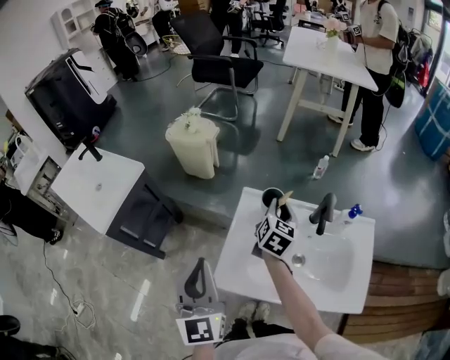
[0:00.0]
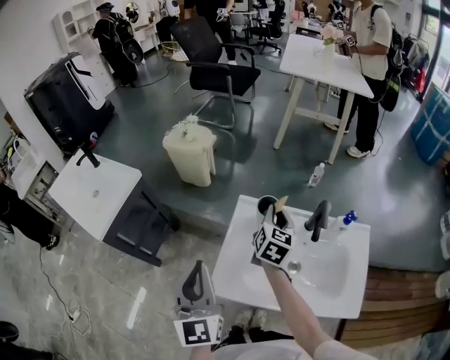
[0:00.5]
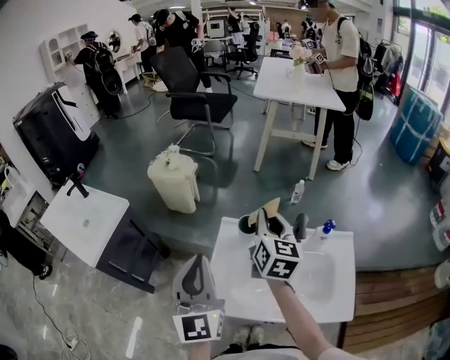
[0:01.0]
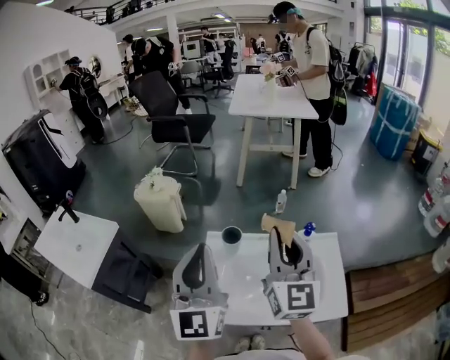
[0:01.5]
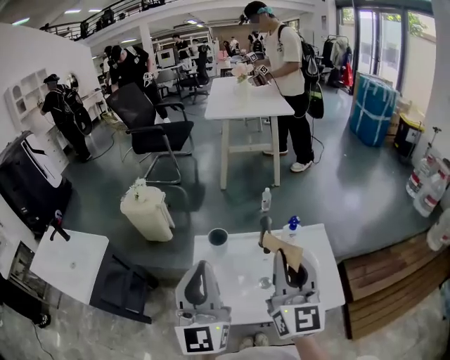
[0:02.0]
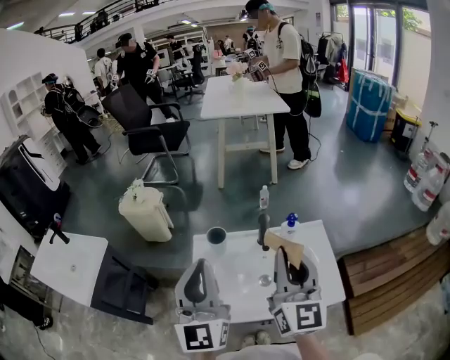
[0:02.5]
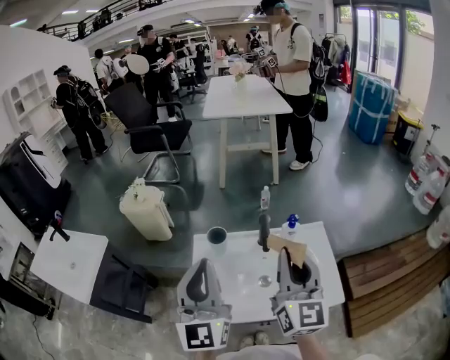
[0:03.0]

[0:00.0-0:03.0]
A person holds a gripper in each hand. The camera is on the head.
0:00.0 to 0:01.5: The right gripper moves upward and backward, roughly 30 cm, and tilts its fingers roughly 30 degrees upward. Meanwhile the left gripper heads upward and to the right, covering roughly 20 cm, and rotates roughly 30 degrees.
0:01.5 to 0:03.0: The right gripper goes about 10 cm backward and to the right.

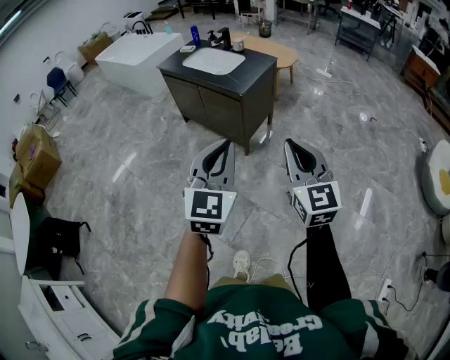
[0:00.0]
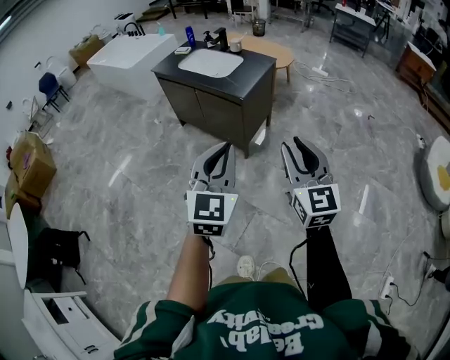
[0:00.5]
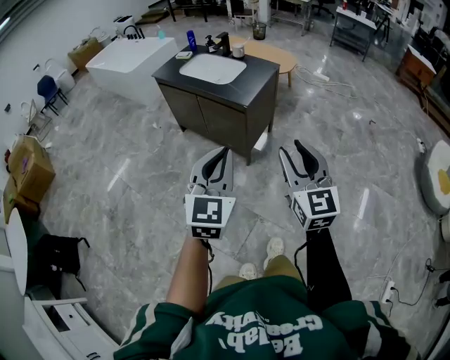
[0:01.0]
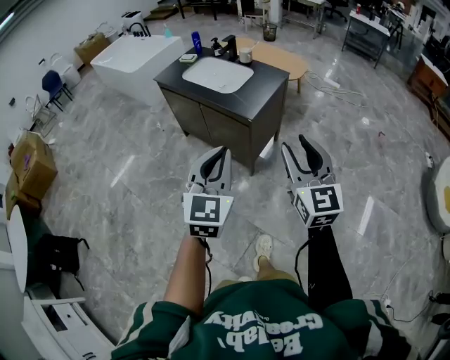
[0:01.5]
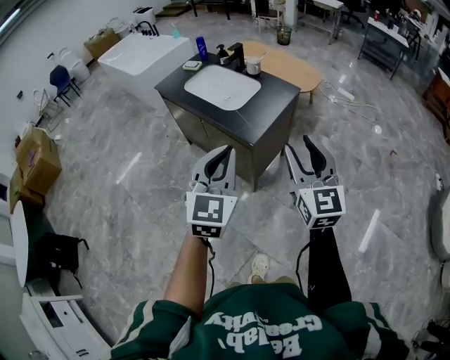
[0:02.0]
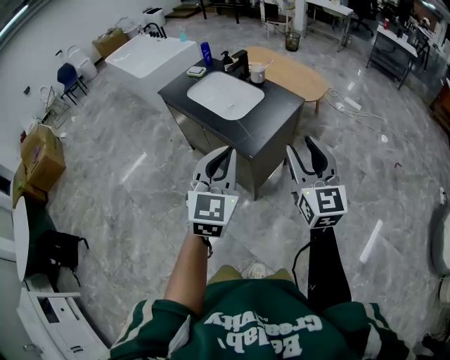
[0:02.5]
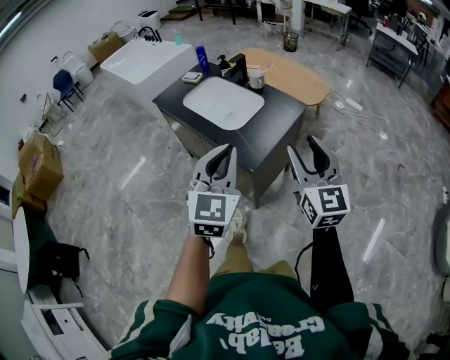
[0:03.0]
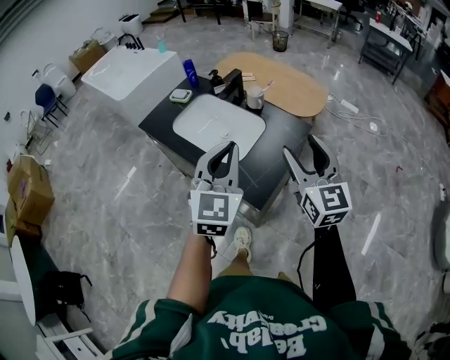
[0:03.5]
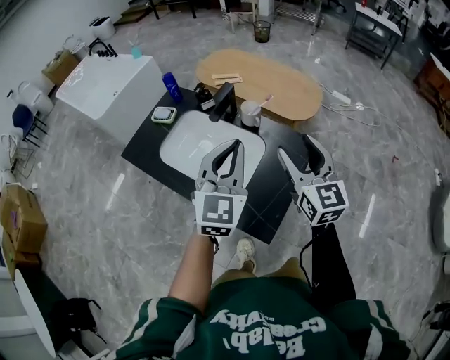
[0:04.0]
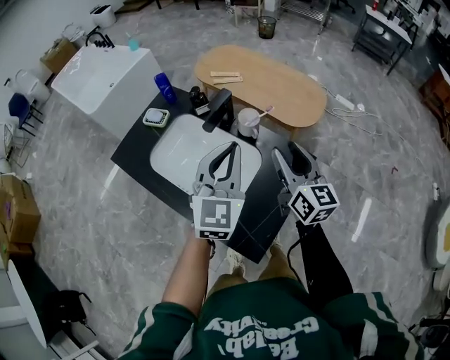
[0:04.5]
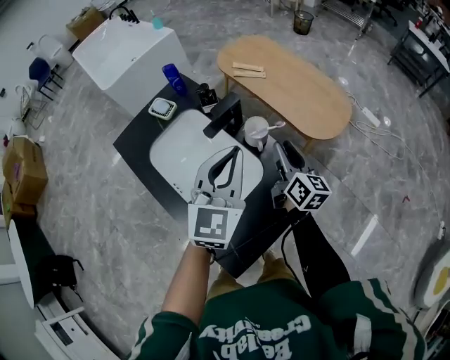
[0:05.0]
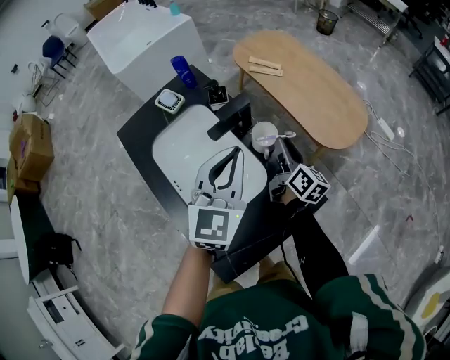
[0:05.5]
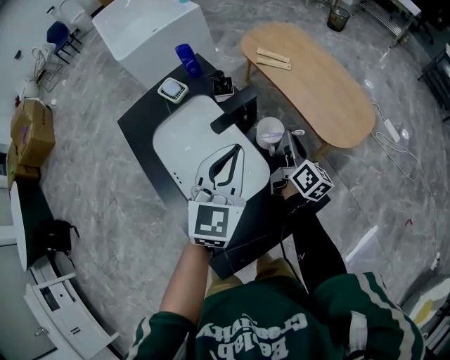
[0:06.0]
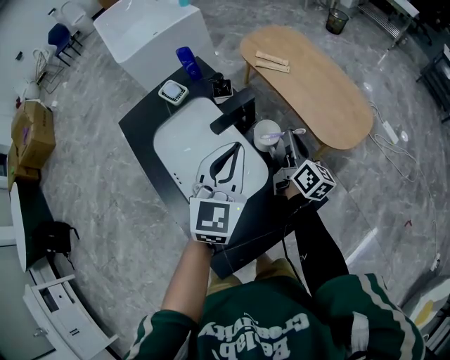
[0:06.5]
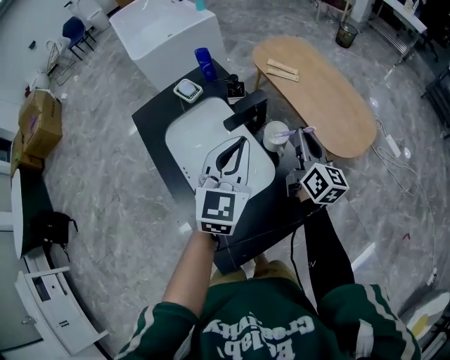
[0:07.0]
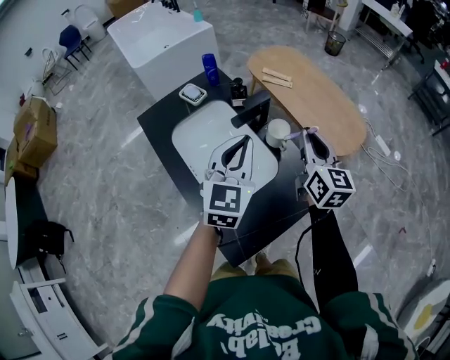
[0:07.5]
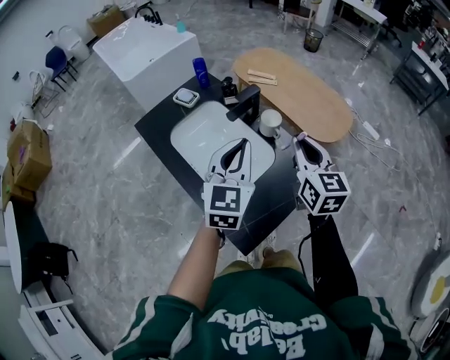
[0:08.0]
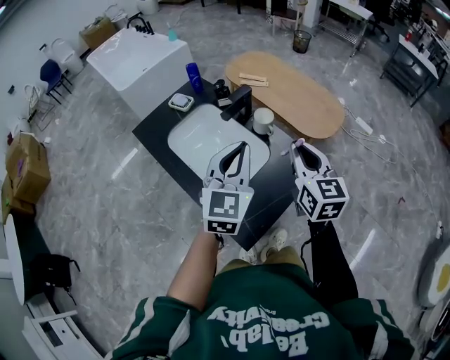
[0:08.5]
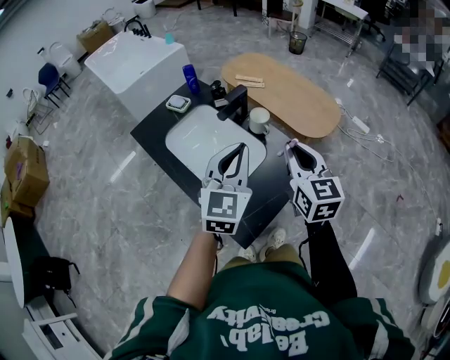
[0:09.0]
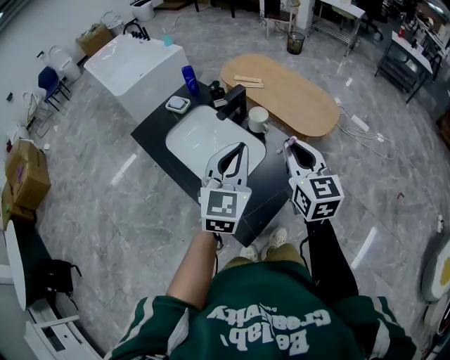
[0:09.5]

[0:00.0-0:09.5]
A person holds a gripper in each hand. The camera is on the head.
0:00.0 to 0:02.0: Both grippers travel together forward, approximately 40 cm. The right gripper opens its fingers.
0:02.0 to 0:04.0: The two grippers travel together, forward, approximately 50 cm.
0:04.0 to 0:05.5: The left gripper heads forward and downward, covering about 20 cm, and rotates approximately 20 degrees. The right gripper is displaced forward and downward by some 35 cm, rolls clockwise, seen from behind, by about 40 degrees, and closes up.
0:05.5 to 0:07.5: The right gripper is displaced upward and backward by about 20 cm, turns by approximately 30 degrees, and closes, while the left gripper ends up some 5 cm from where it was.
0:07.5 to 0:09.5: The grippers both shift backward by roughly 15 cm.

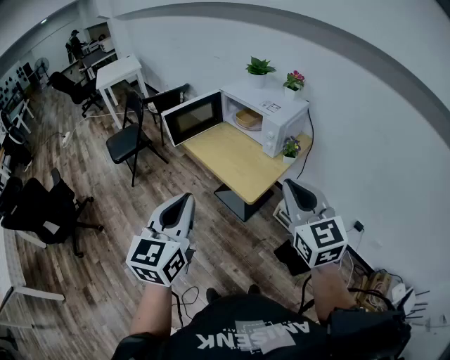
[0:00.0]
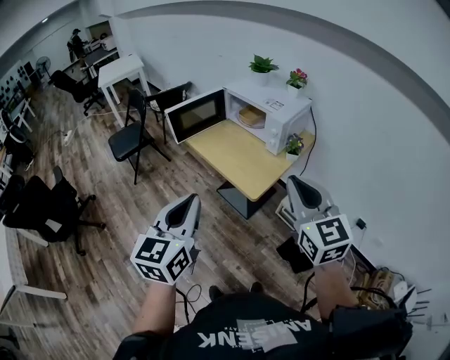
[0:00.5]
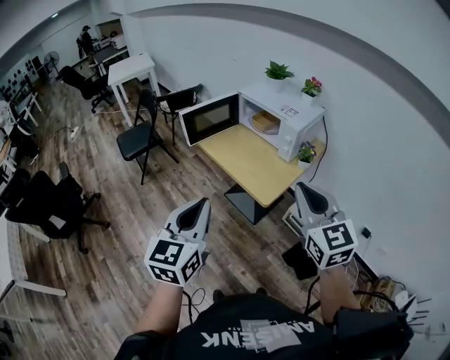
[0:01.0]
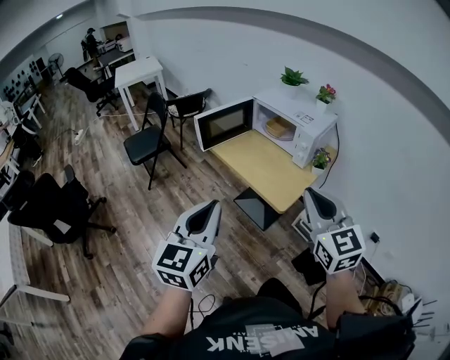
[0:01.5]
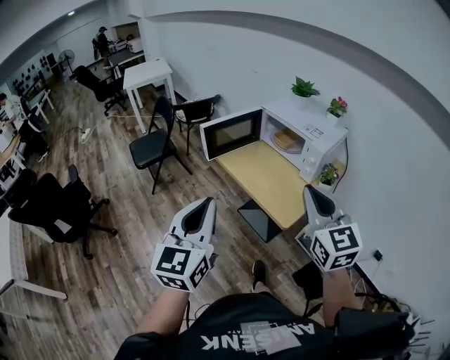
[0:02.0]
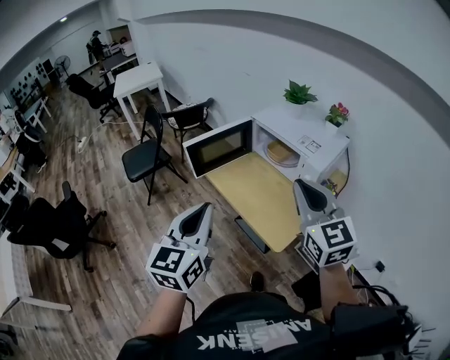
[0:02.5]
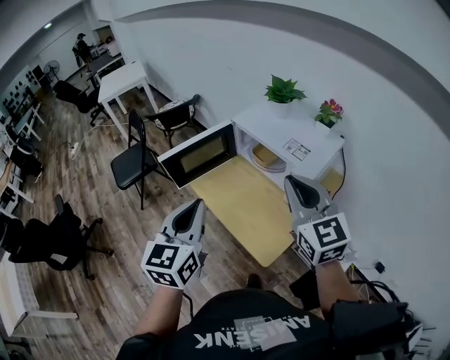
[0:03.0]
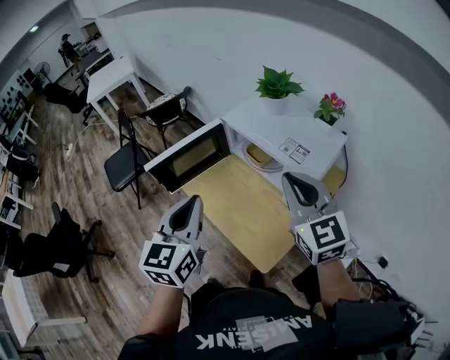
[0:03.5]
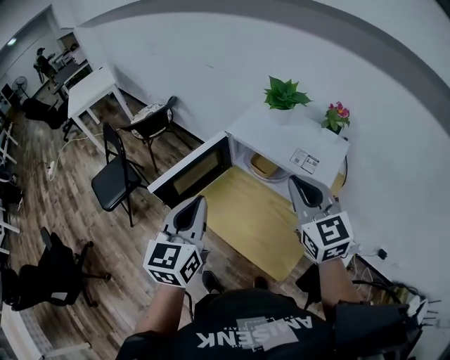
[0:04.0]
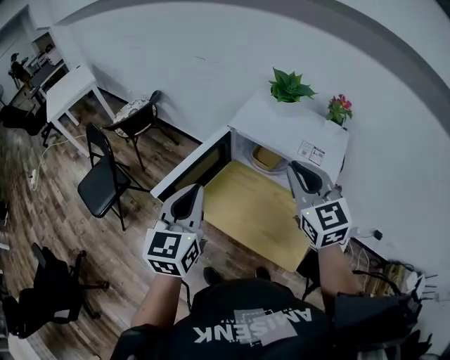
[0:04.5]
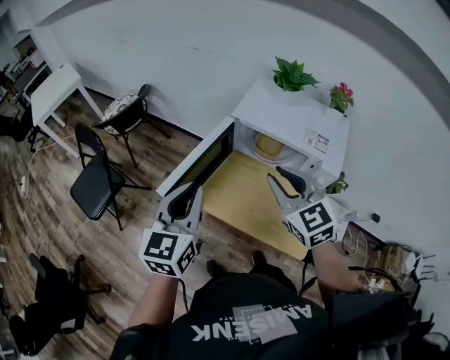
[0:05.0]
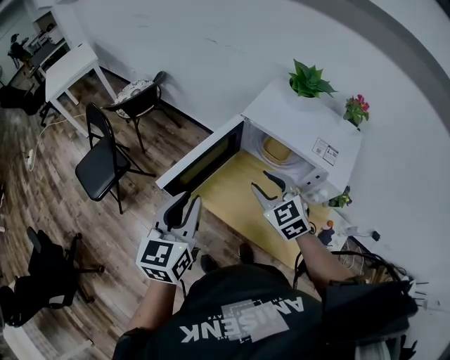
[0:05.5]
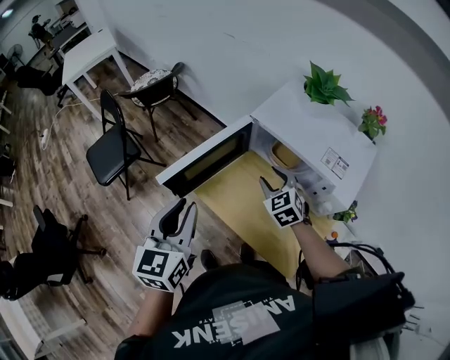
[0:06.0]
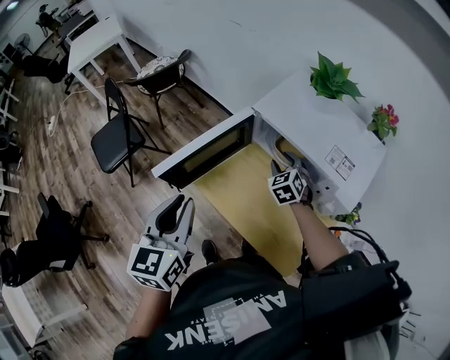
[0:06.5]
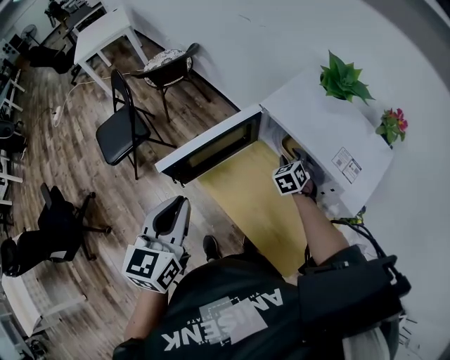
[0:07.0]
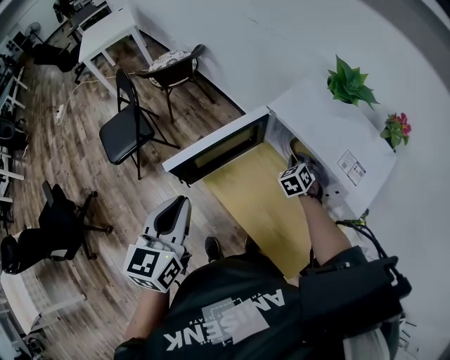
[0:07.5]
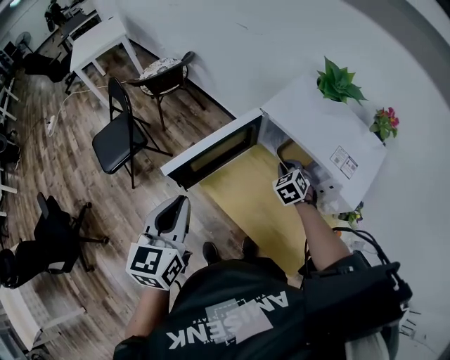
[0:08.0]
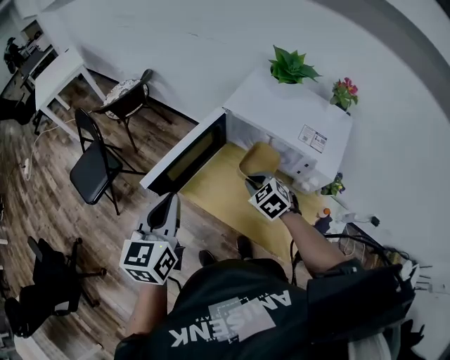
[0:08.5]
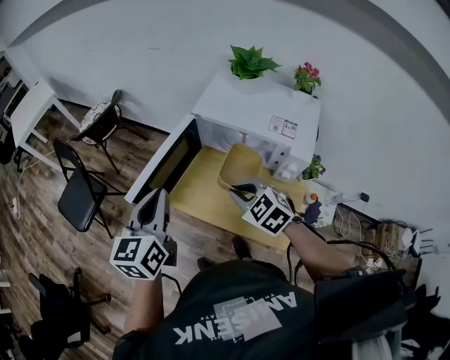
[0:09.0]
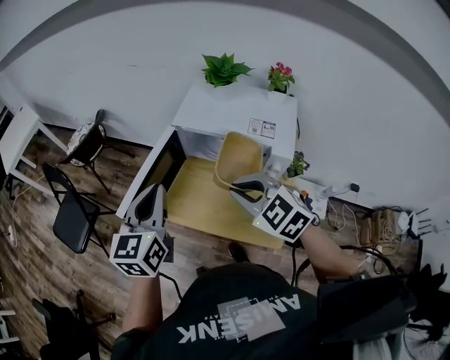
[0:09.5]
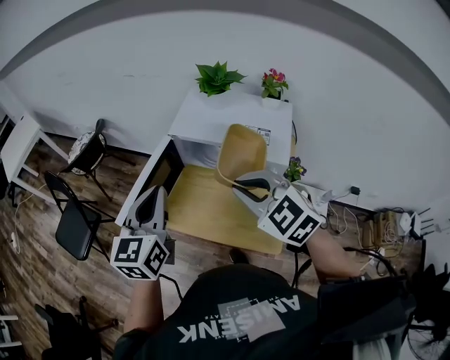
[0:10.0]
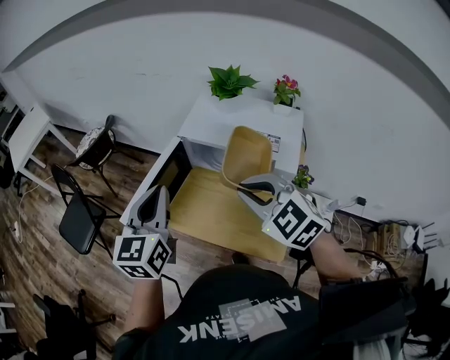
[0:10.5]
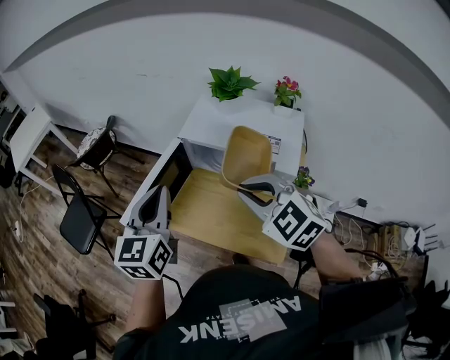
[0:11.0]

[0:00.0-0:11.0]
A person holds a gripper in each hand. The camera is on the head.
0:00.0 to 0:02.0: The grippers both shift to the left and forward by approximately 10 cm.
0:02.0 to 0:03.5: The right gripper goes roughly 30 cm forward, while the left gripper heads forward and to the right, covering about 35 cm.
0:03.5 to 0:05.5: The left gripper goes some 20 cm to the left and forward, while the right gripper moves to the left, downward and forward, approximately 25 cm, rotates some 20 degrees, and opens.
0:05.5 to 0:07.5: The right gripper moves downward, forward and to the right, approximately 25 cm, rotates roughly 30 degrees, and closes up.
0:07.5 to 0:09.0: The left gripper rotates roughly 20 degrees, while the right gripper travels backward, upward and to the left by some 30 cm, and changes its angle by roughly 20 degrees.
0:09.0 to 0:11.0: The left gripper moves upward and to the right, roughly 10 cm. The right gripper goes some 15 cm upward.

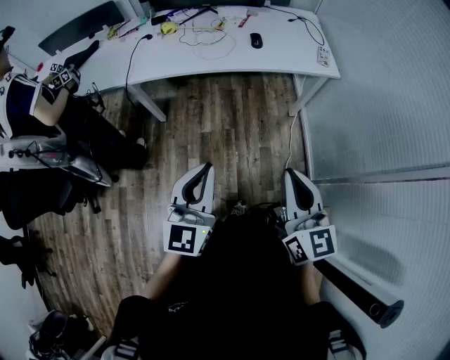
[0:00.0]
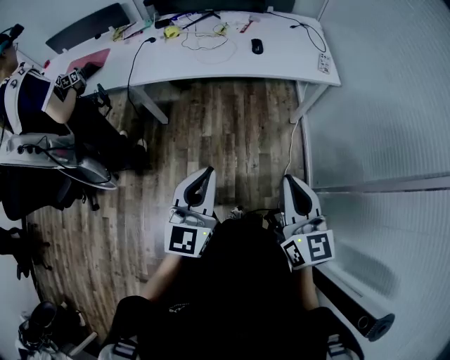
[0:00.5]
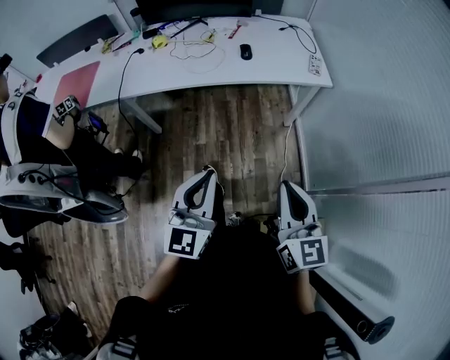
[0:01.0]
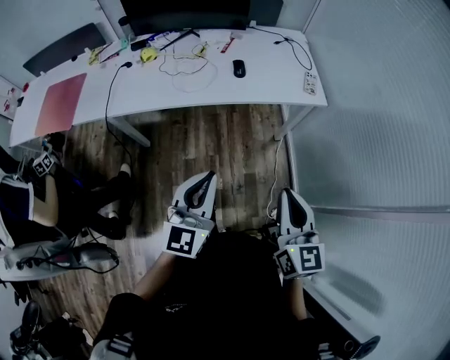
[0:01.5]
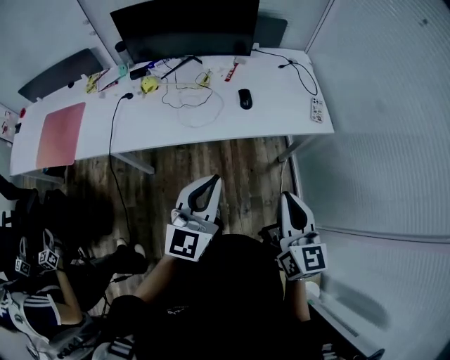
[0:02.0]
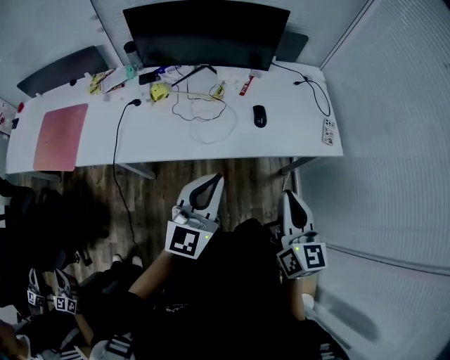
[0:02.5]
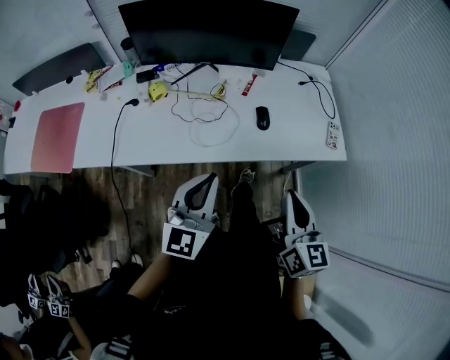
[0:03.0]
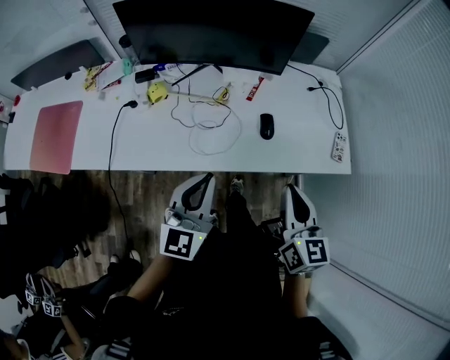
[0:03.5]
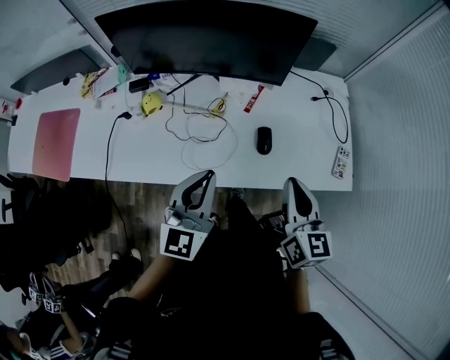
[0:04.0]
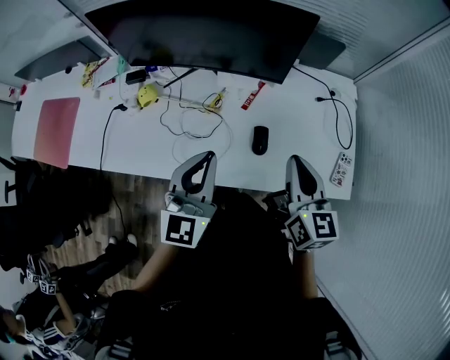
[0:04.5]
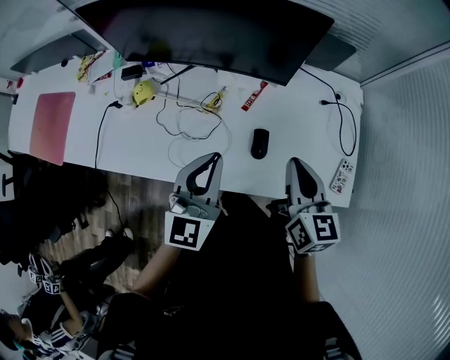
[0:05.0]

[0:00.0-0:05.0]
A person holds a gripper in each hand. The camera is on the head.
0:00.0 to 0:02.5: The two grippers go about 35 cm forward.
0:02.5 to 0:05.0: The two grippers go roughly 35 cm forward.
